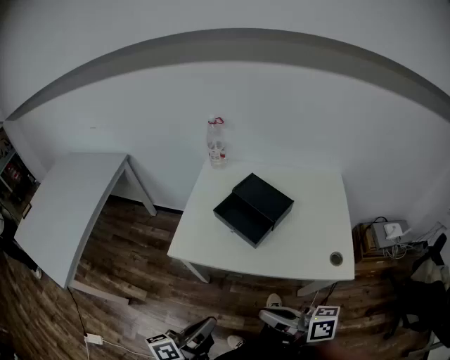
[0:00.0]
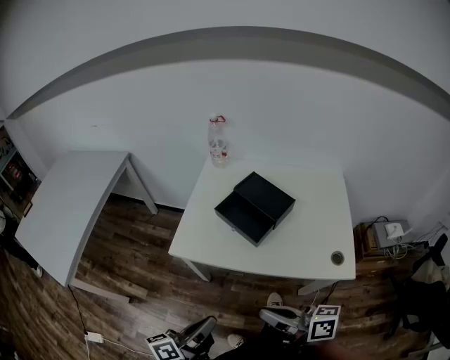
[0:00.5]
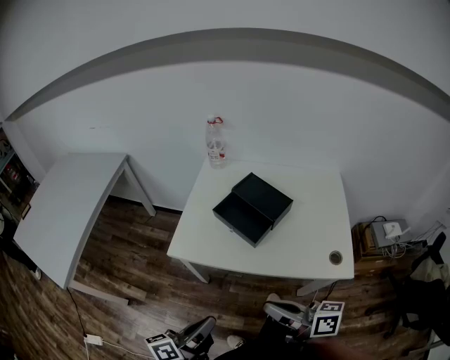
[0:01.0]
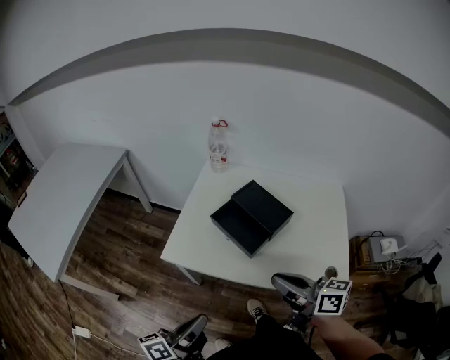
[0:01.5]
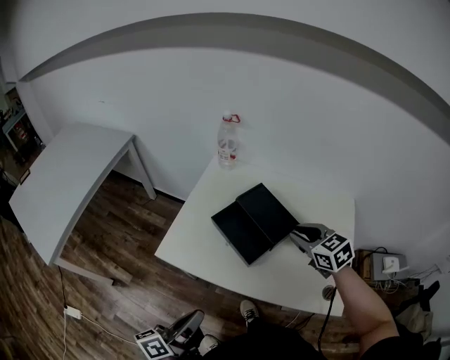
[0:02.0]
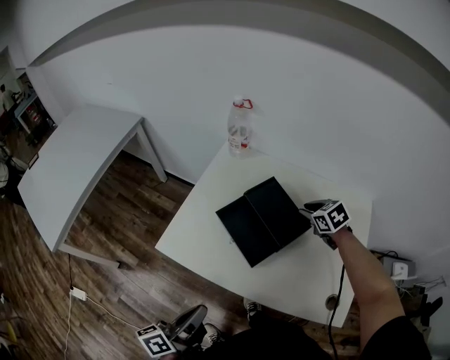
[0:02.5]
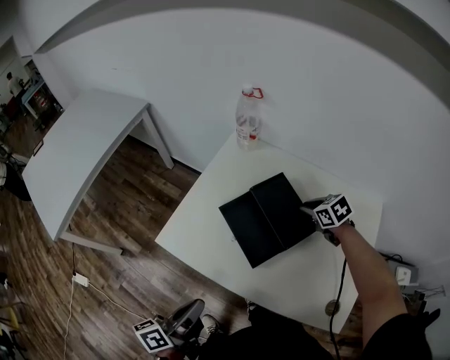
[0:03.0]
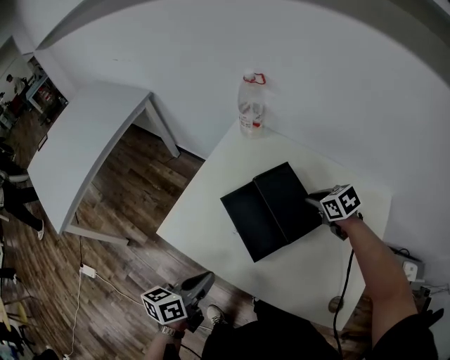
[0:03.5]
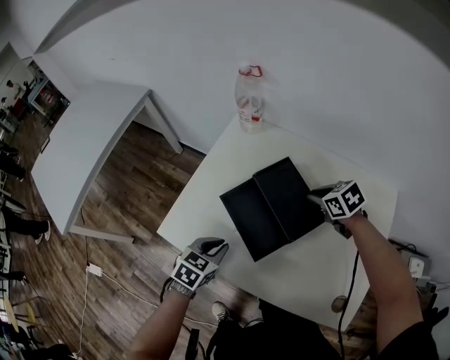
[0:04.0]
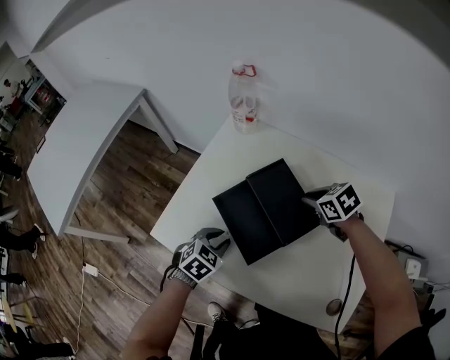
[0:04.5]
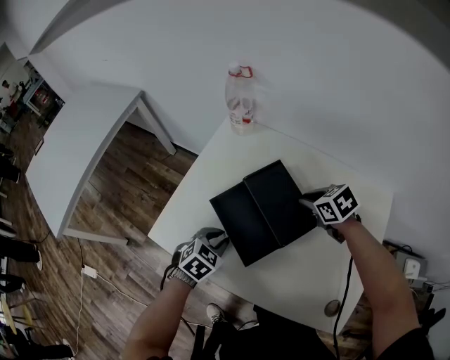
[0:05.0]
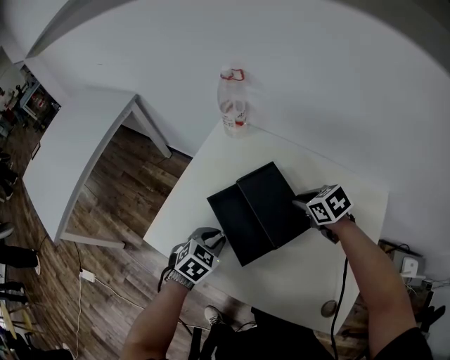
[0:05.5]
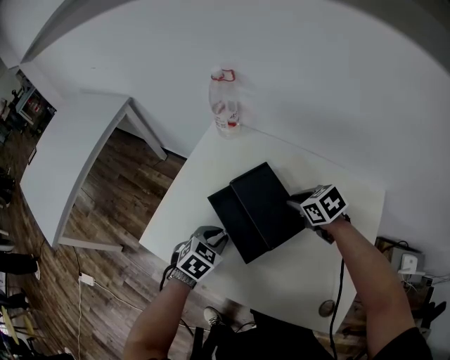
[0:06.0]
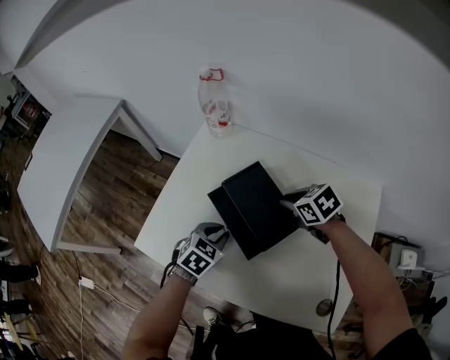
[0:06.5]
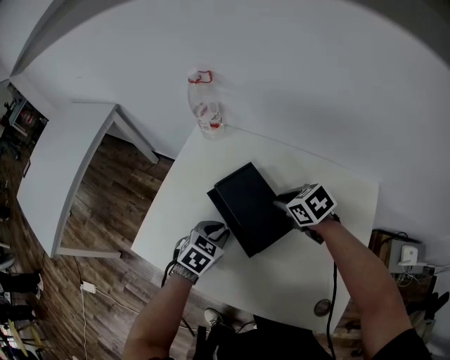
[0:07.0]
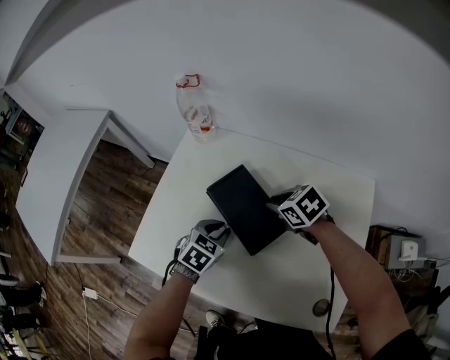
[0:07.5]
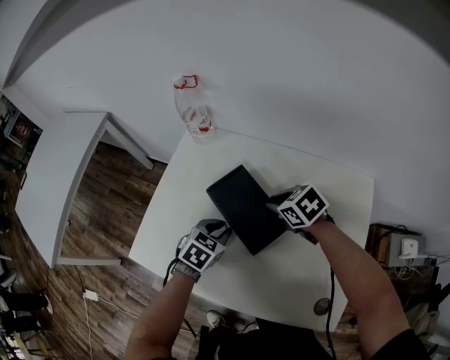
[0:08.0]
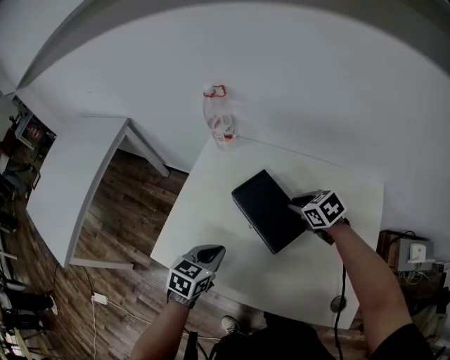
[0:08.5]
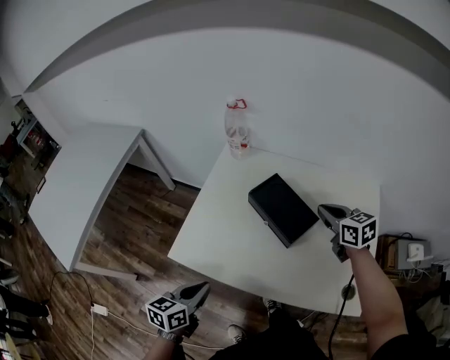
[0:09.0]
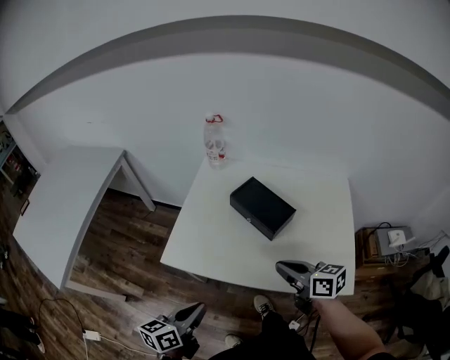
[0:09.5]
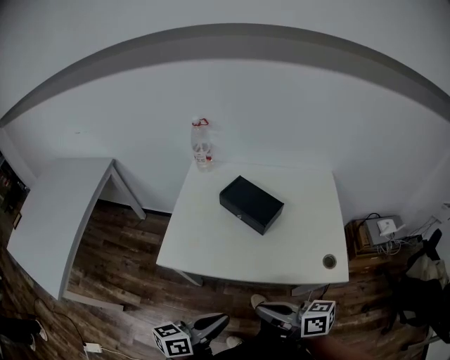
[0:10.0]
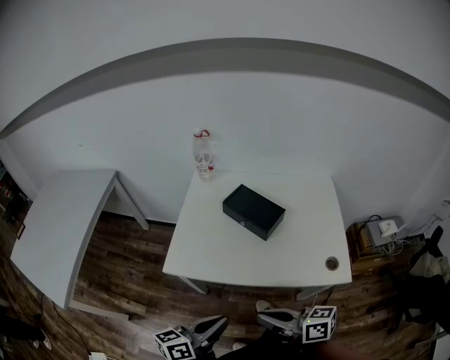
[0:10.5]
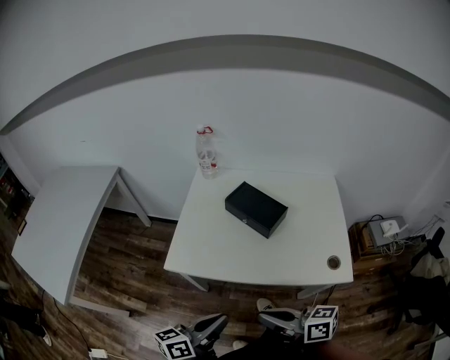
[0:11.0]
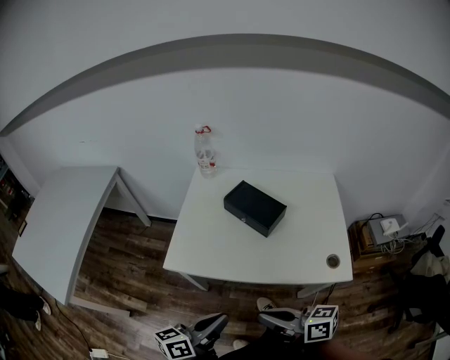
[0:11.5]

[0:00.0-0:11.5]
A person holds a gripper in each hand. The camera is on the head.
0:00.0 to 0:02.0: The left gripper heads forward, covering some 10 cm. Meanwhile the right gripper moves forward and to the right, roughly 35 cm, twists roughly 50 degrees counterclockwise, seen from behind, and opens up.
0:02.0 to 0:04.0: The right gripper heads forward and downward, covering roughly 20 cm, and rotates approximately 30 degrees. Meanwhile the left gripper shifts some 25 cm forward, downward and to the right, and tips its fingers downward by roughly 50 degrees.
0:04.0 to 0:06.0: The left gripper heads to the right, covering some 5 cm.
0:06.0 to 0:07.5: The left gripper shifts approximately 5 cm to the right.
0:07.5 to 0:09.5: The left gripper is displaced backward, to the left and upward by roughly 35 cm, and points its fingers roughly 30 degrees further upward. The right gripper heads backward and upward, covering some 30 cm, and points its fingers roughly 30 degrees further upward.
0:09.5 to 0:11.5: The right gripper travels backward and to the left by approximately 20 cm. The left gripper heads backward, covering approximately 5 cm.

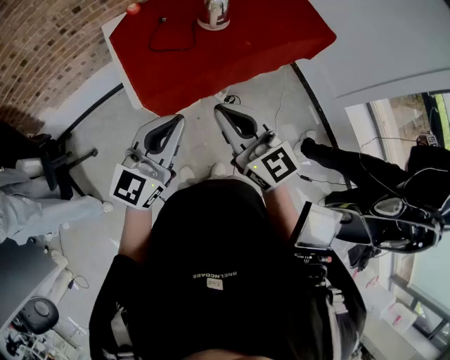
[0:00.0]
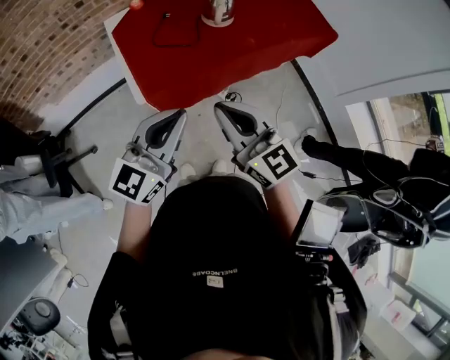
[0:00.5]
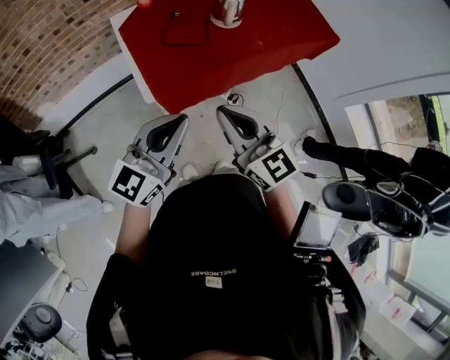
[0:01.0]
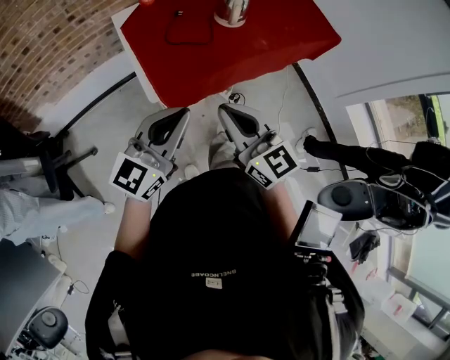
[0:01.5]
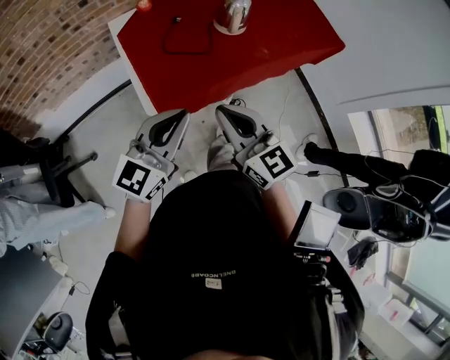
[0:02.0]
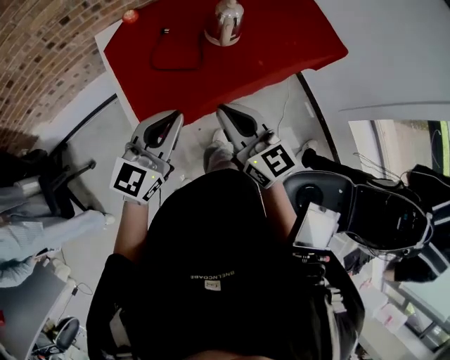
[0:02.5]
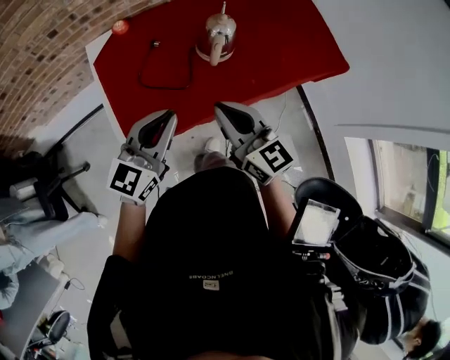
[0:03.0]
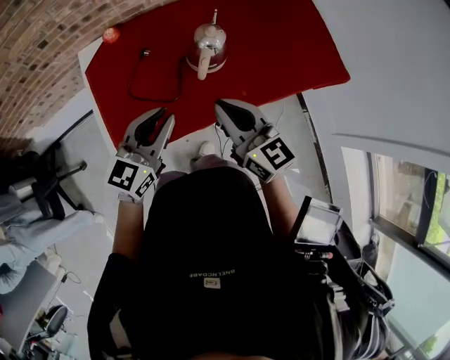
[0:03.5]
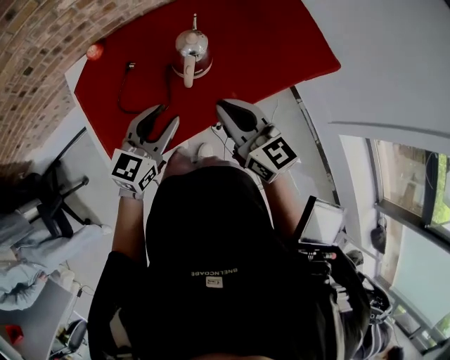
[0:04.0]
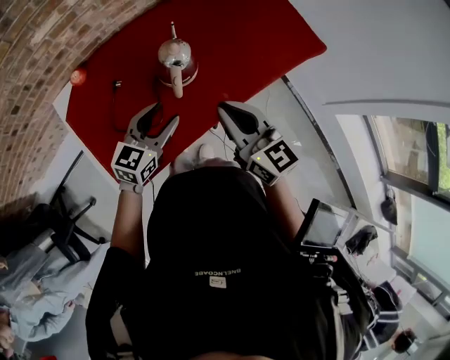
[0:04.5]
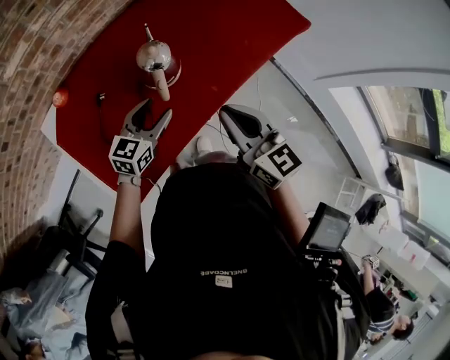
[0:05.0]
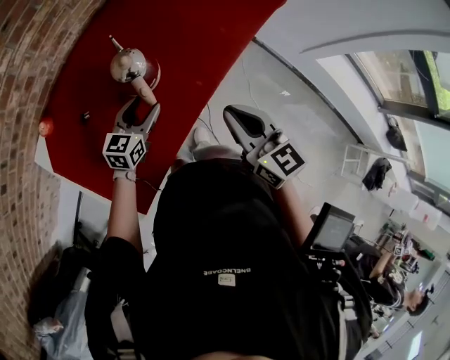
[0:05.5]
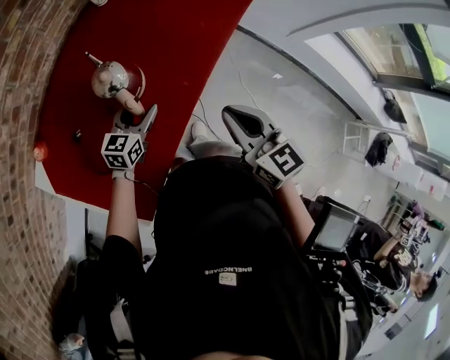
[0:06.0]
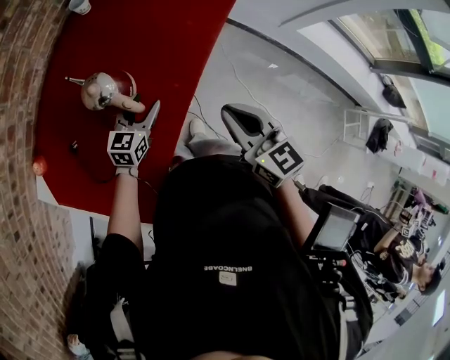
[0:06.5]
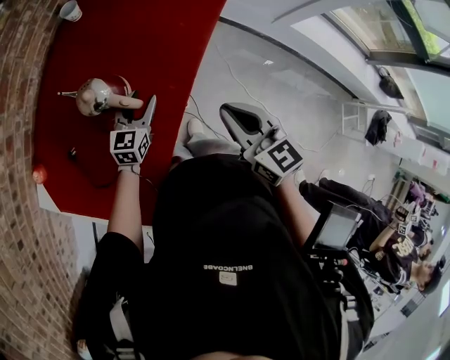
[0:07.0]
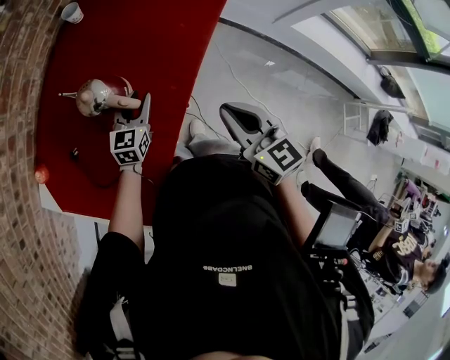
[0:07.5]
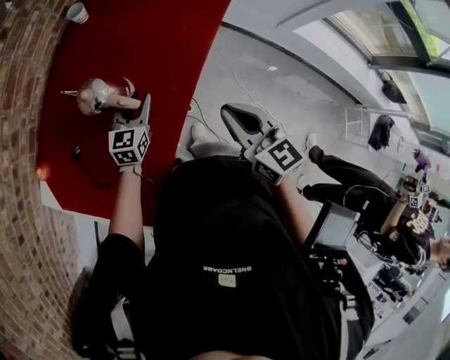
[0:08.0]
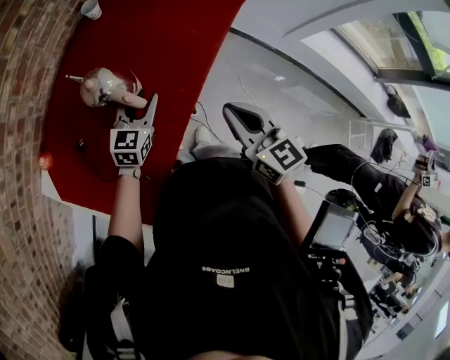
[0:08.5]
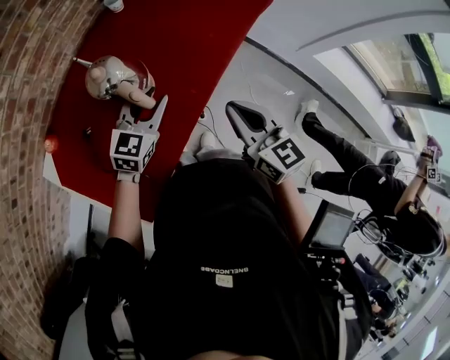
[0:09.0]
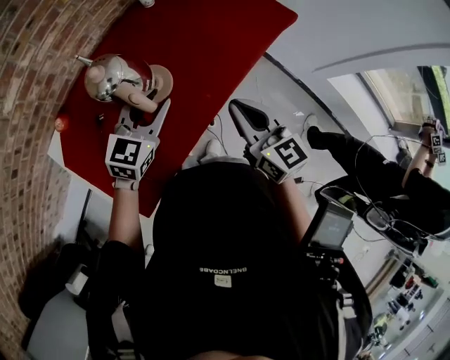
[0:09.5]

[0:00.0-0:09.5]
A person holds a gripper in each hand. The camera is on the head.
0:00.0 to 0:02.0: The left gripper moves to the left and forward, some 10 cm. The right gripper goes roughly 10 cm to the left, forward and downward.
0:02.0 to 0:04.0: The grippers both shift forward and to the right by approximately 35 cm. The left gripper opens up.
0:04.0 to 0:05.5: The right gripper shifts by approximately 10 cm, and turns by some 30 degrees. The left gripper heads downward, covering roughly 15 cm, and changes its angle by roughly 20 degrees.
0:05.5 to 0:07.5: The left gripper heads to the right and forward, covering approximately 10 cm, and closes its fingers. The right gripper is displaced to the right by approximately 5 cm.
0:07.5 to 0:09.5: The left gripper heads upward, covering some 15 cm; the right gripper ends up roughly 5 cm from where it was.

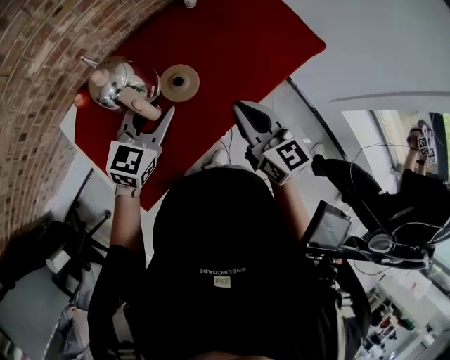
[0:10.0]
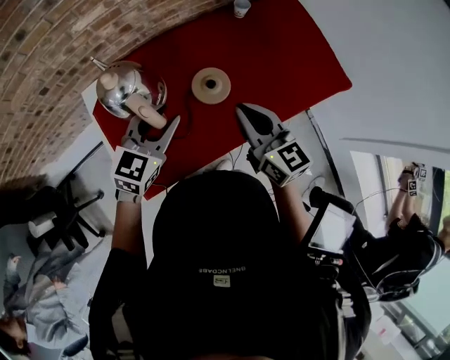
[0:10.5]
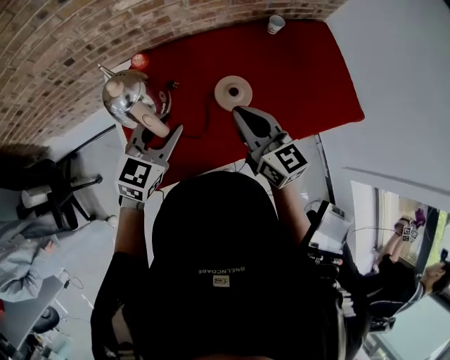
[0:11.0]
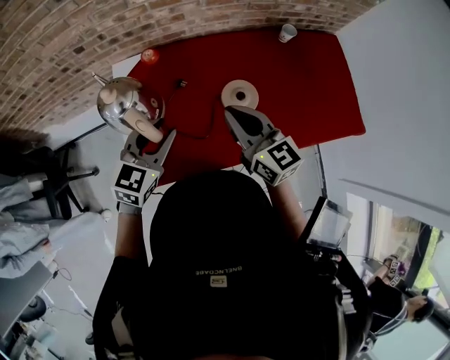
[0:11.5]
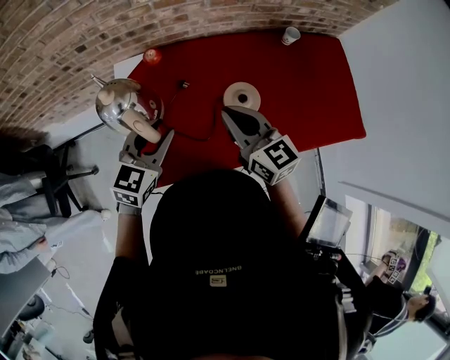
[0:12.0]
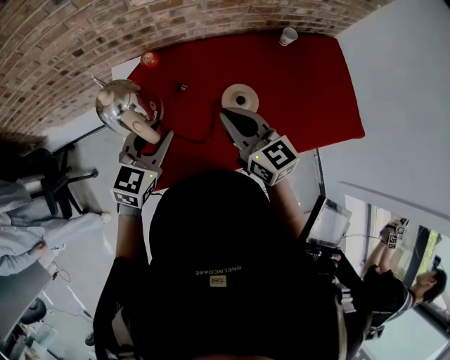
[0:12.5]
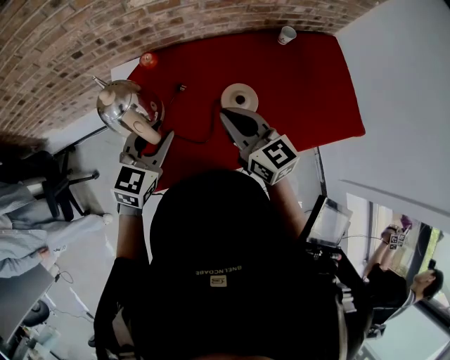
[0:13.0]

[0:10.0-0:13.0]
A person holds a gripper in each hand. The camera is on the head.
0:10.0 to 0:11.5: The left gripper moves some 20 cm, and rotates approximately 30 degrees, while the right gripper changes place by approximately 20 cm, and rotates some 30 degrees.
0:11.5 to 0:13.0: The grippers move only a little.

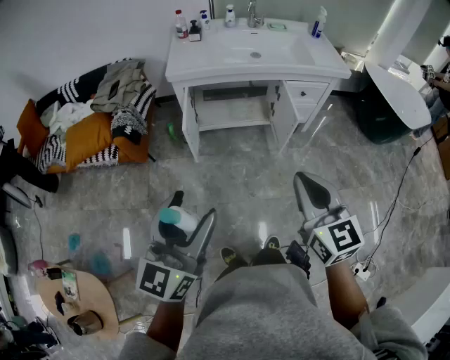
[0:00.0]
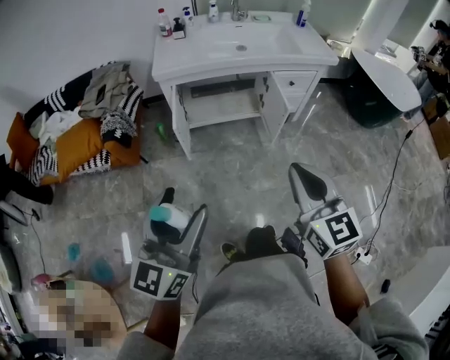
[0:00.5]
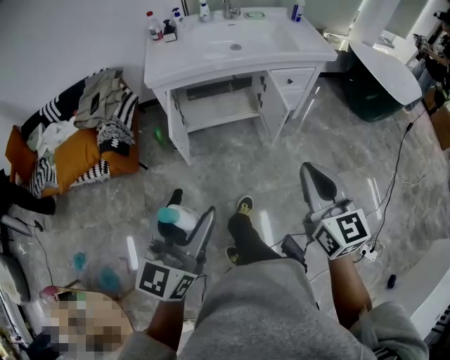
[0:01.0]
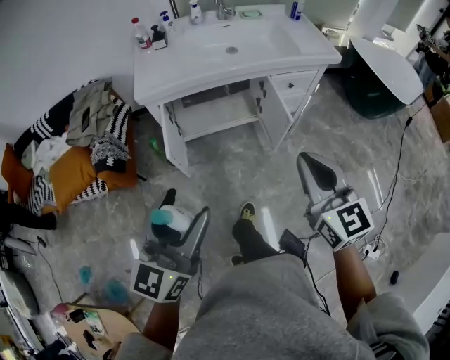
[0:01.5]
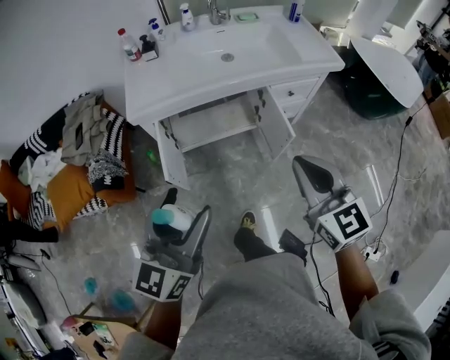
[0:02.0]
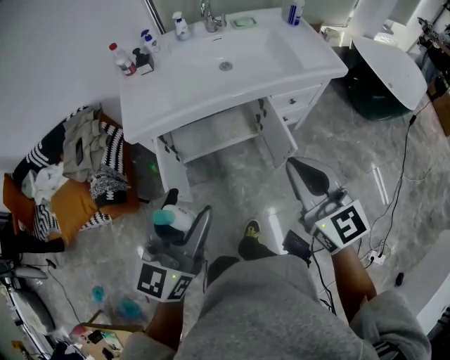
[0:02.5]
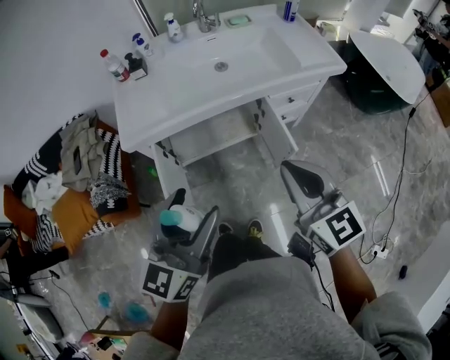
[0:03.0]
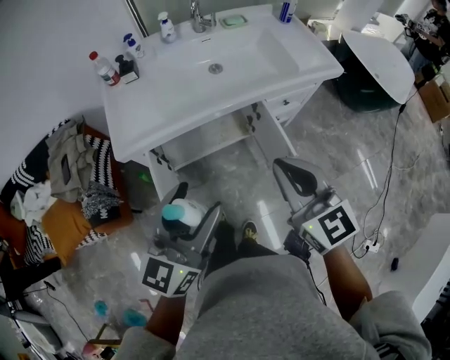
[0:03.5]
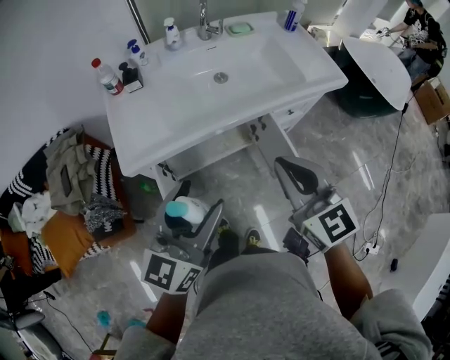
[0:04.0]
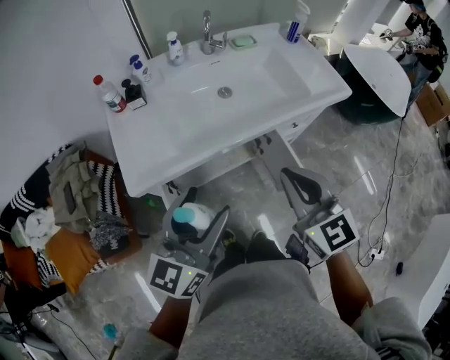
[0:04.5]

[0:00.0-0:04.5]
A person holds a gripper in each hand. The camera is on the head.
0:00.0 to 0:02.0: Both grippers travel together forward, roughly 25 cm.
0:02.0 to 0:04.5: The right gripper moves forward and to the left, approximately 20 cm; the left gripper is displaced forward by roughly 25 cm.
